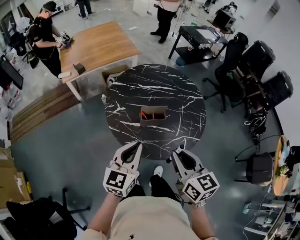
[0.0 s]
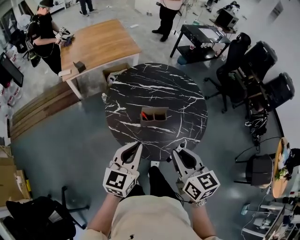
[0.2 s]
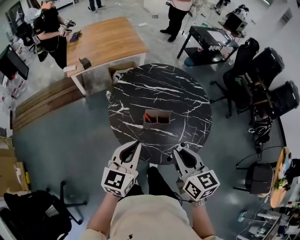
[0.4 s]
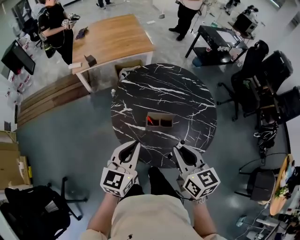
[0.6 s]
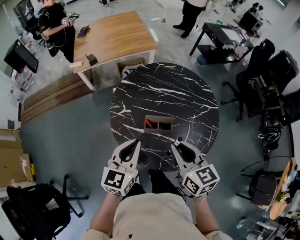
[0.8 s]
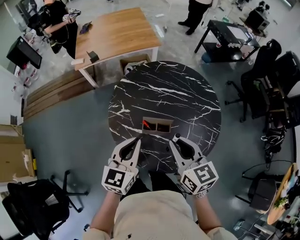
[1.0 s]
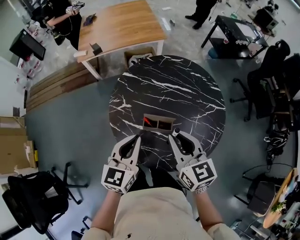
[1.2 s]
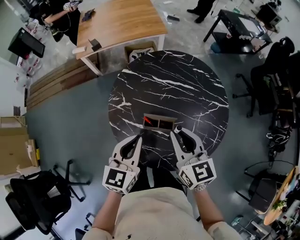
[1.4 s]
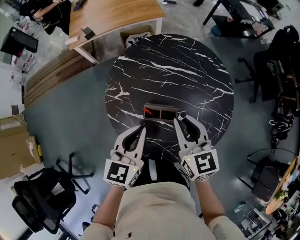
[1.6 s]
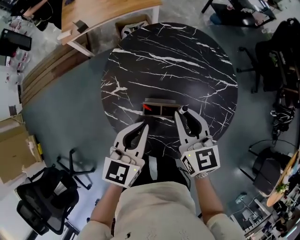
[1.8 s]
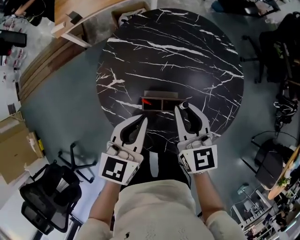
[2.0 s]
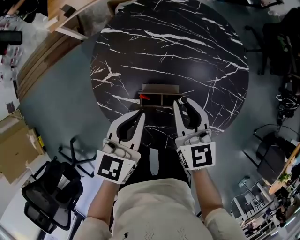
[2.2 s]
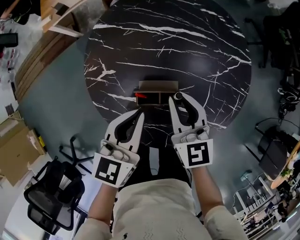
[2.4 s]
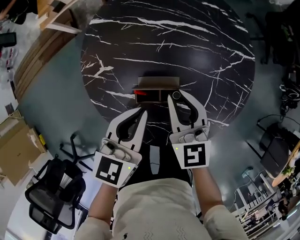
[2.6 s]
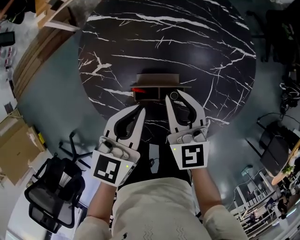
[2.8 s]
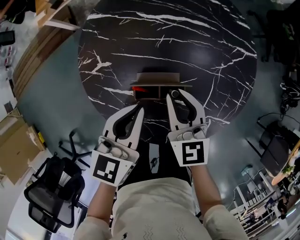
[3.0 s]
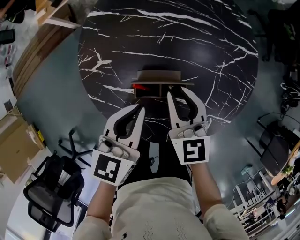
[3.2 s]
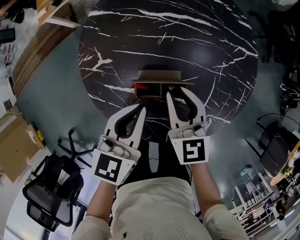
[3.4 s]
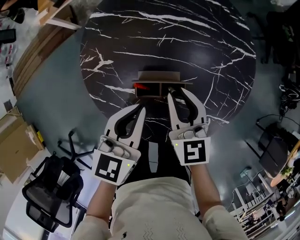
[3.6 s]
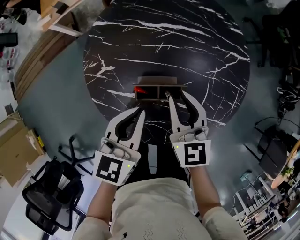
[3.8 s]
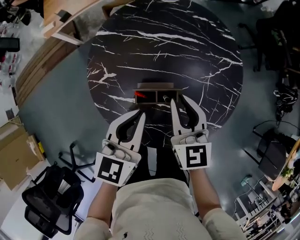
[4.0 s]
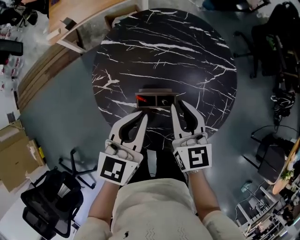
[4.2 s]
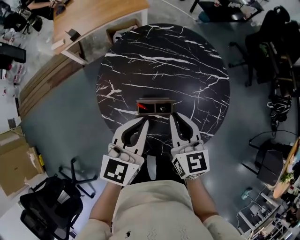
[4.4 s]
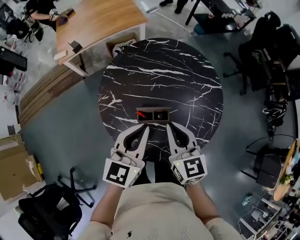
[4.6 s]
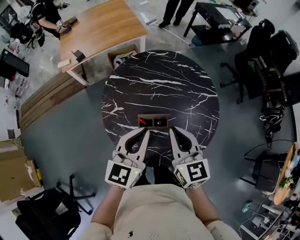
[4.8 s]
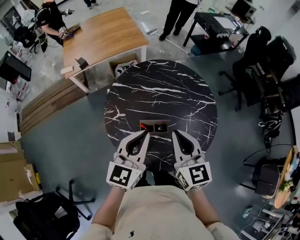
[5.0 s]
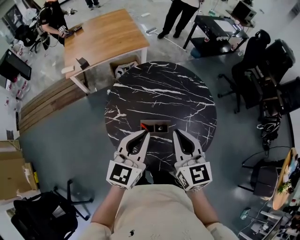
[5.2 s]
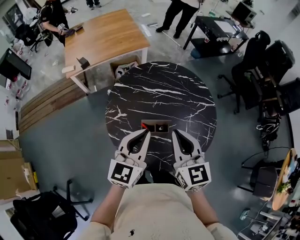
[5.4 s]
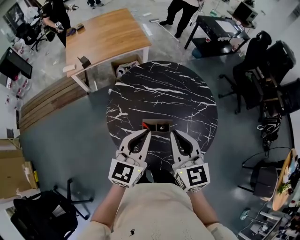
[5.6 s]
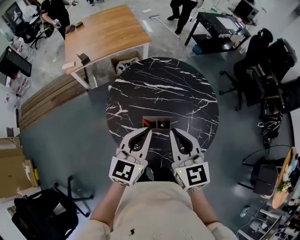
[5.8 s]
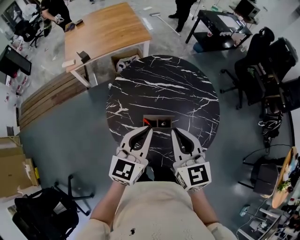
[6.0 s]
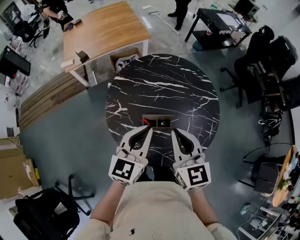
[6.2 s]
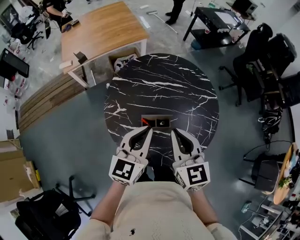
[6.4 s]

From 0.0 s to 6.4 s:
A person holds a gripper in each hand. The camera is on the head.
From 0.0 s to 1.6 s: The right gripper goes some 25 cm forward, while the left gripper travels forward and downward by roughly 20 cm.
From 1.6 s to 3.2 s: Both grippers move downward, approximately 15 cm.
From 3.2 s to 4.8 s: Both grippers move upward, roughly 20 cm.
From 4.8 s to 6.4 s: There are only small adjustments of the grippers.

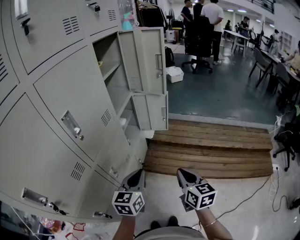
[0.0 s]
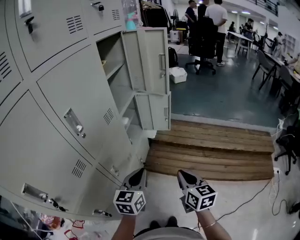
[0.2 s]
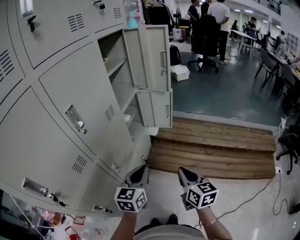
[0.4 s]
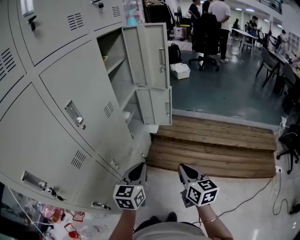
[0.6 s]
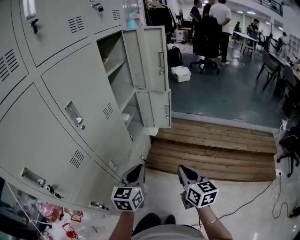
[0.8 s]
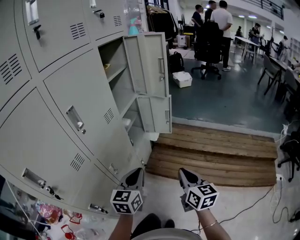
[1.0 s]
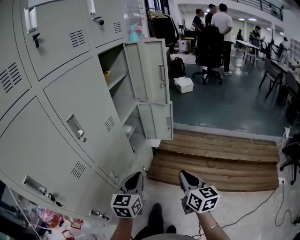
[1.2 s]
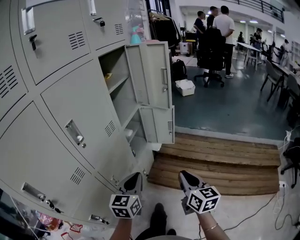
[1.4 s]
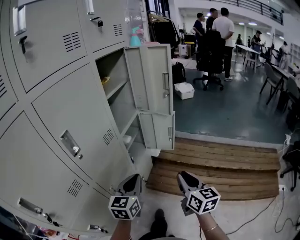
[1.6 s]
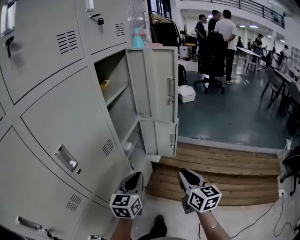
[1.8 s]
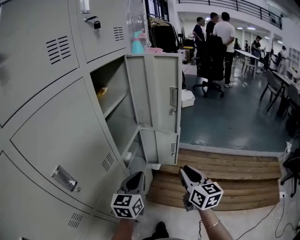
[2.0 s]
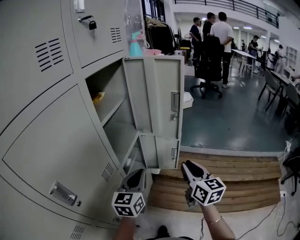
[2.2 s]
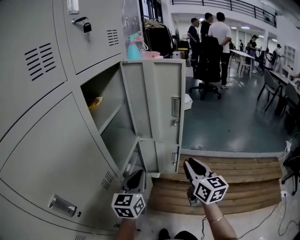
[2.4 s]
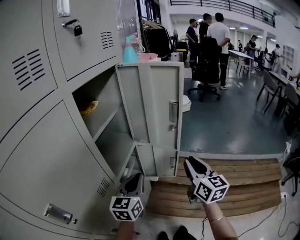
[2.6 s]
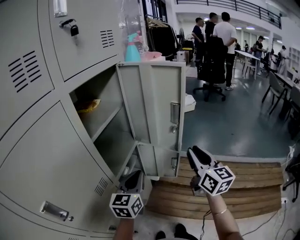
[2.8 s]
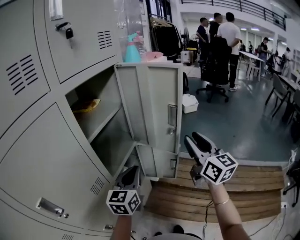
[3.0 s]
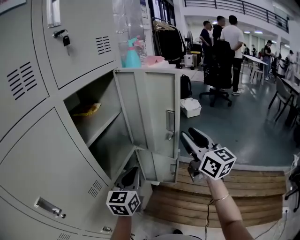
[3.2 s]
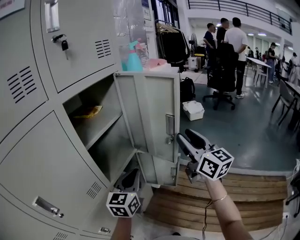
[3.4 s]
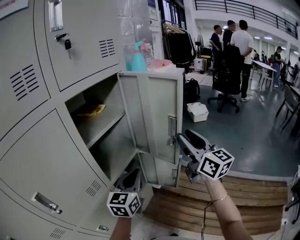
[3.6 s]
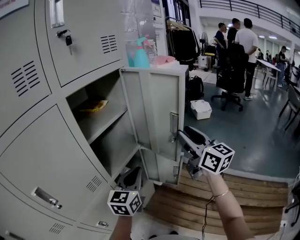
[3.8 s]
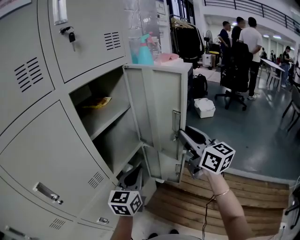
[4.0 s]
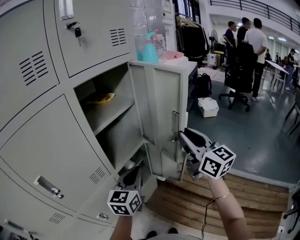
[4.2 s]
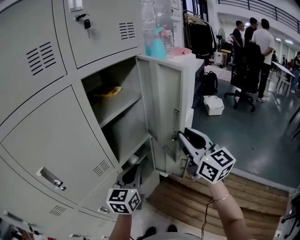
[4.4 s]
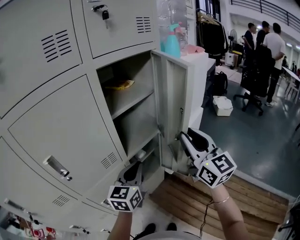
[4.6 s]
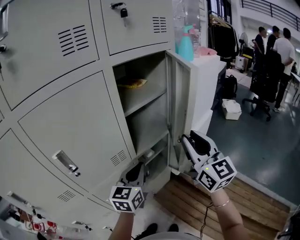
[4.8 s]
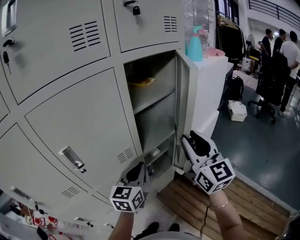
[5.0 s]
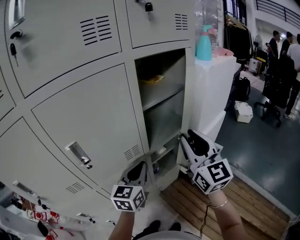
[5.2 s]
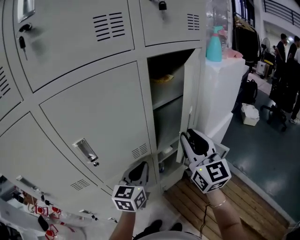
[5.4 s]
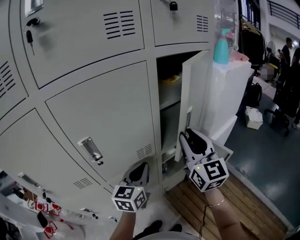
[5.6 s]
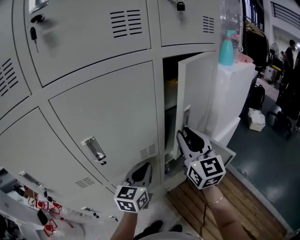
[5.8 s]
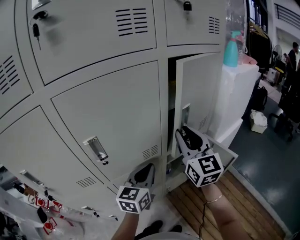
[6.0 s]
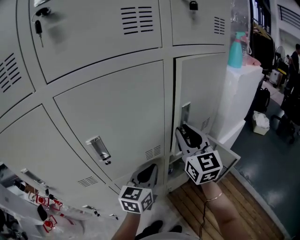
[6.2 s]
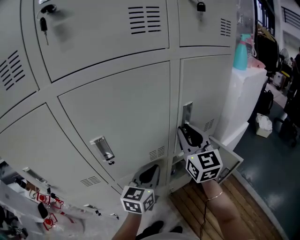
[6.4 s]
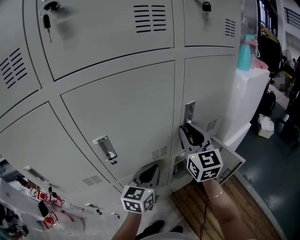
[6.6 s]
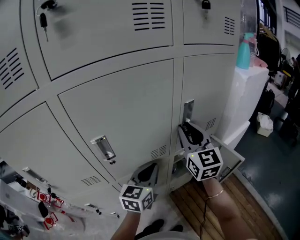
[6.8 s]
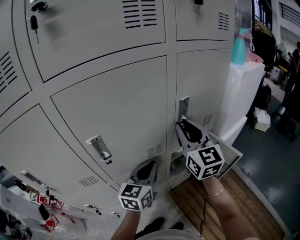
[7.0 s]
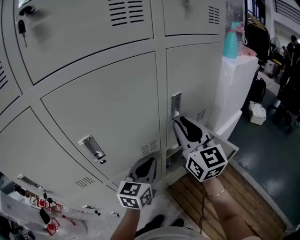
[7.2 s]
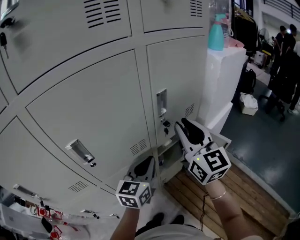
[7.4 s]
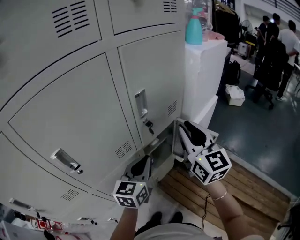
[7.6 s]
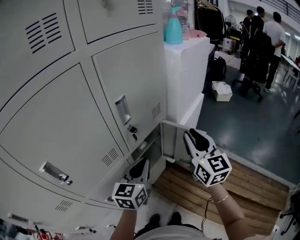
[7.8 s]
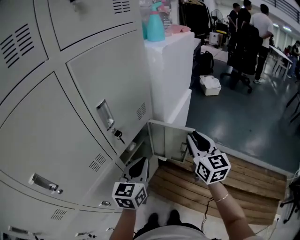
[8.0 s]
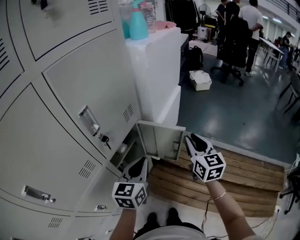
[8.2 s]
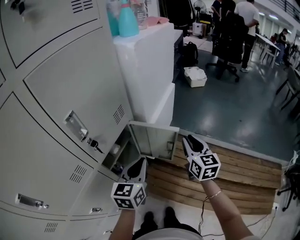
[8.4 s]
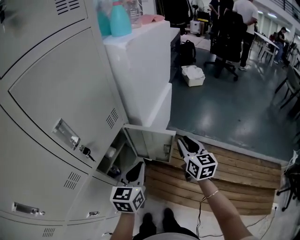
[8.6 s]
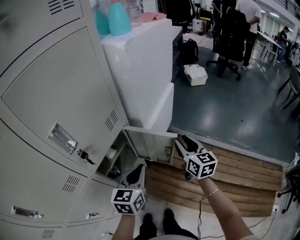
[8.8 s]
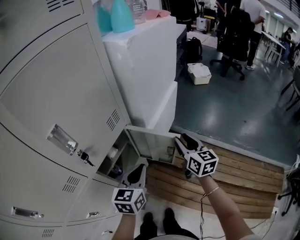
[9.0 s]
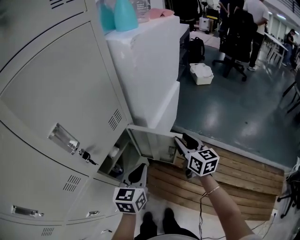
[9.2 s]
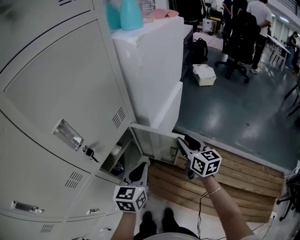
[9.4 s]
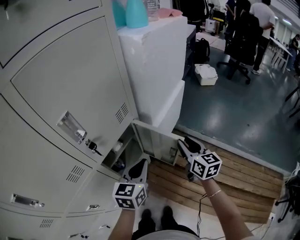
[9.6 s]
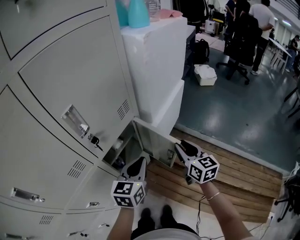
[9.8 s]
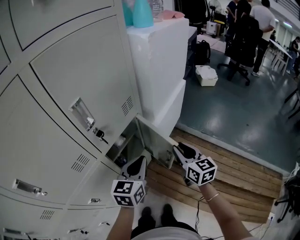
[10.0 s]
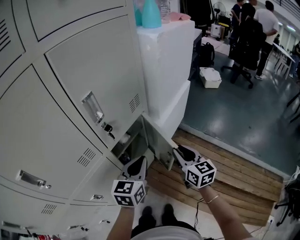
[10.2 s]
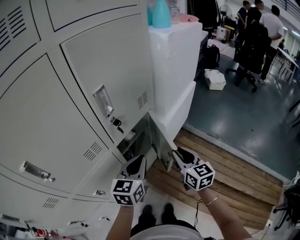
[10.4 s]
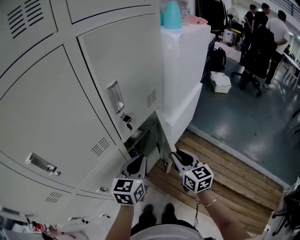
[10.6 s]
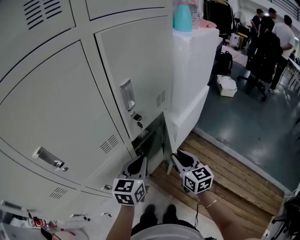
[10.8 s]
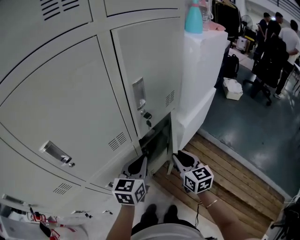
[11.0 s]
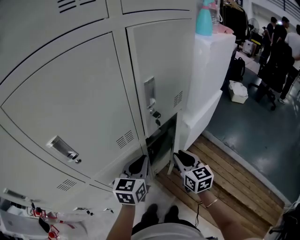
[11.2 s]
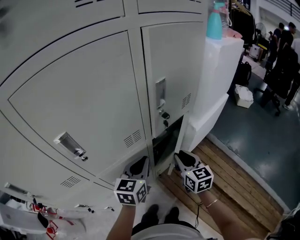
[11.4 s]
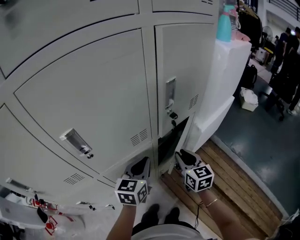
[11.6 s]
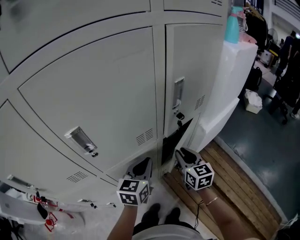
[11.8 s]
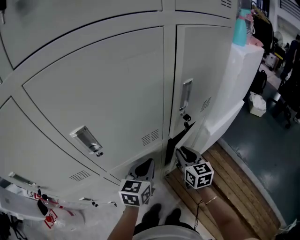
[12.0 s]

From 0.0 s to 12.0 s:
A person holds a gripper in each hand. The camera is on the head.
From 0.0 s to 1.6 s: The two grippers go roughly 10 cm forward.
From 1.6 s to 3.0 s: The left gripper shifts roughly 30 cm forward; the right gripper shifts roughly 40 cm forward and upward, swivels approximately 20 degrees, and opens up.
From 3.0 s to 4.4 s: The right gripper shifts roughly 5 cm to the left, and swivels some 20 degrees.
From 4.4 s to 6.0 s: Both grippers move to the left, roughly 20 cm.
From 6.0 s to 7.6 s: Both grippers move to the right, roughly 10 cm.
From 7.6 s to 9.0 s: The right gripper moves to the right, downward and forward, roughly 35 cm, and changes its angle by approximately 30 degrees; the left gripper is displaced to the right, forward and downward by roughly 20 cm.
From 9.0 s to 10.4 s: The left gripper moves to the left and backward, some 10 cm; the right gripper moves backward and to the left, roughly 20 cm.
From 10.4 s to 12.0 s: Both grippers travel together to the left, some 20 cm.

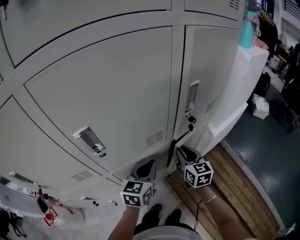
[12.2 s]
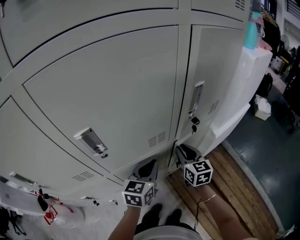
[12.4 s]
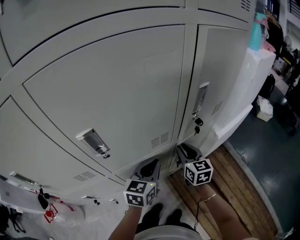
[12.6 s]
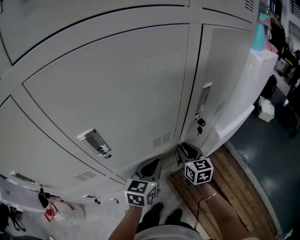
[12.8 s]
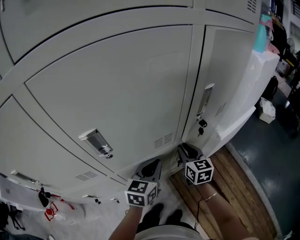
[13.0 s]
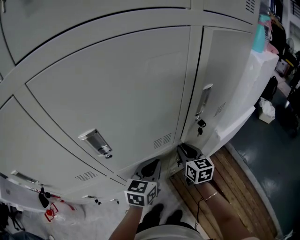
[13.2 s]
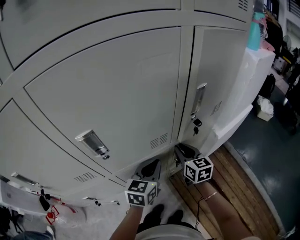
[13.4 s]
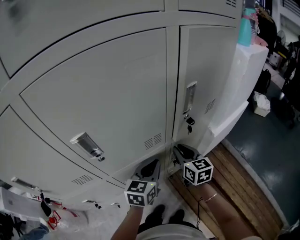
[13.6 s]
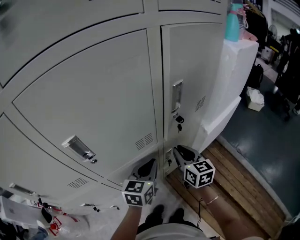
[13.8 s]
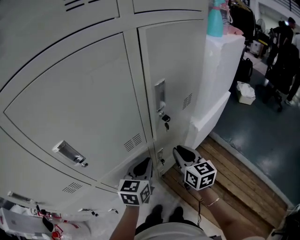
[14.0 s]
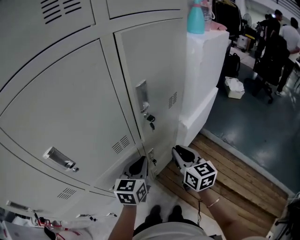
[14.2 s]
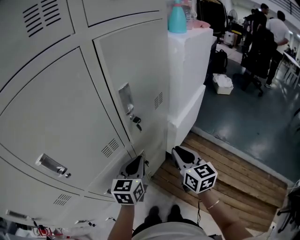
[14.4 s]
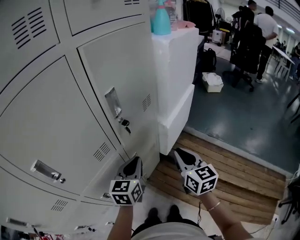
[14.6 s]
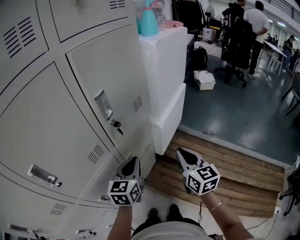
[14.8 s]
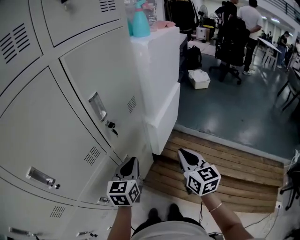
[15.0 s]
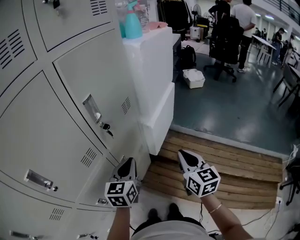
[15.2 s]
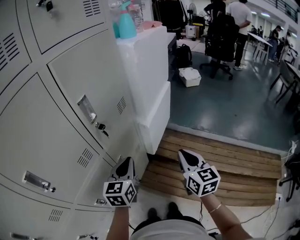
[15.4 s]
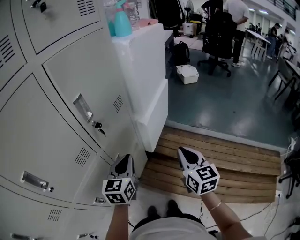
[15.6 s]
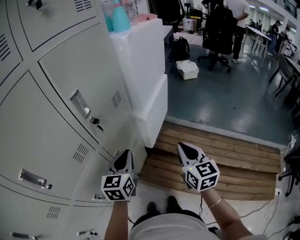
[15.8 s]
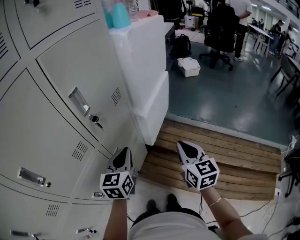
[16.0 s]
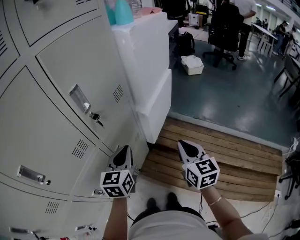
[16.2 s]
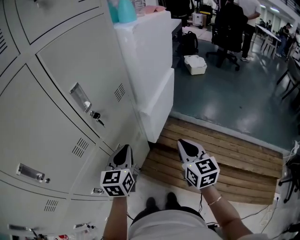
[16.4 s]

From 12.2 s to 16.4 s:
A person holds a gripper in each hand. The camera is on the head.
From 12.2 s to 13.6 s: There are only small adjustments of the grippers.
From 13.6 s to 15.0 s: The right gripper changes place by approximately 30 cm, and rotates approximately 30 degrees. The left gripper changes place by about 15 cm.
From 15.0 s to 16.4 s: The grippers move only a little.

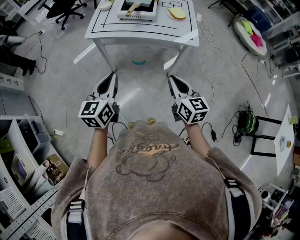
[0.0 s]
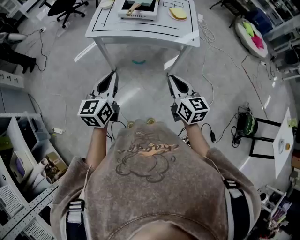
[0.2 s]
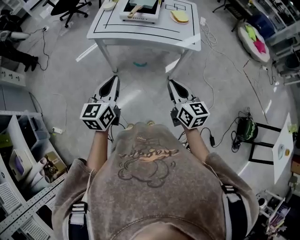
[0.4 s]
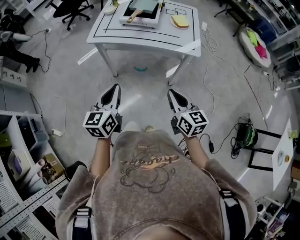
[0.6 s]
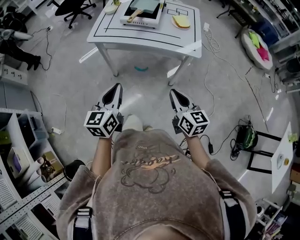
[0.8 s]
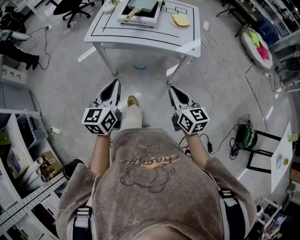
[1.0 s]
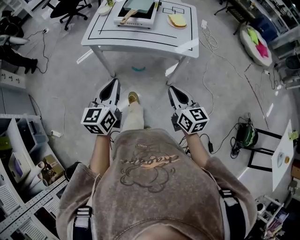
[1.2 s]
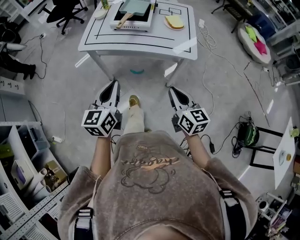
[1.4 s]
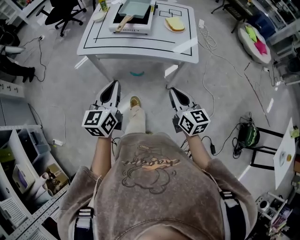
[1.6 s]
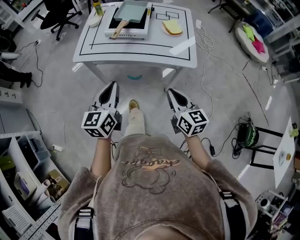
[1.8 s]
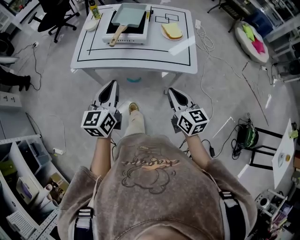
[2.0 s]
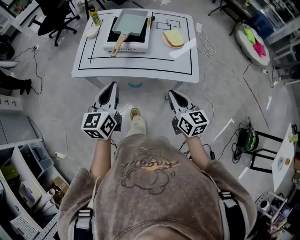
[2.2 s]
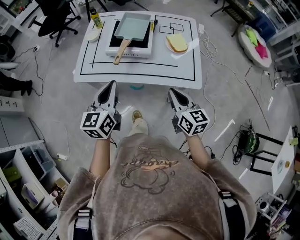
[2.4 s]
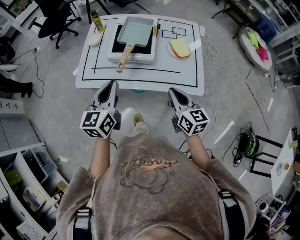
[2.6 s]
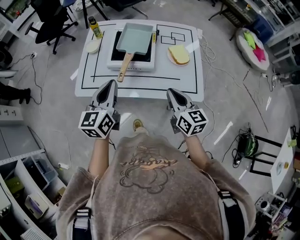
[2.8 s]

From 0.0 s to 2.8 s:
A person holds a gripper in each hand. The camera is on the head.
From 0.0 s to 1.4 s: The right gripper is displaced to the right and forward by about 10 cm. The left gripper is displaced forward and to the right by approximately 10 cm.
From 1.4 s to 2.8 s: The two grippers go about 30 cm forward.
